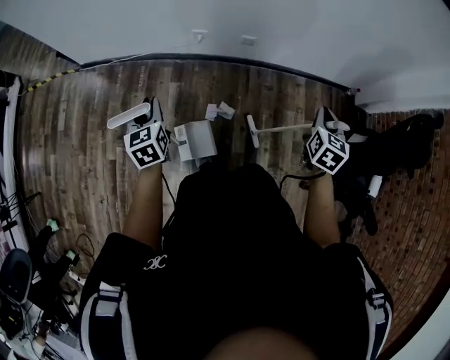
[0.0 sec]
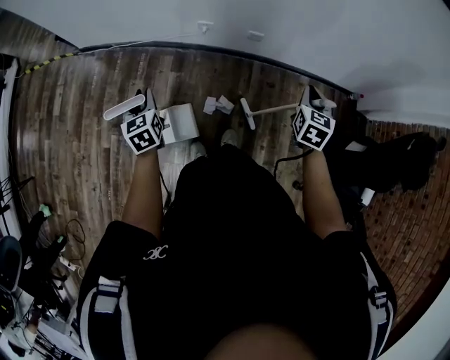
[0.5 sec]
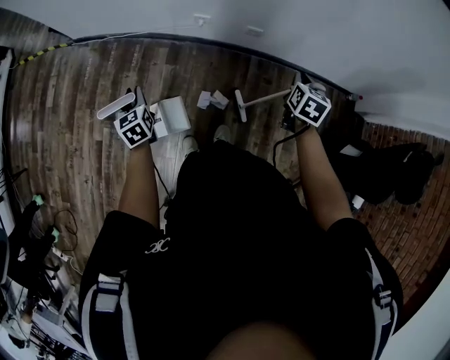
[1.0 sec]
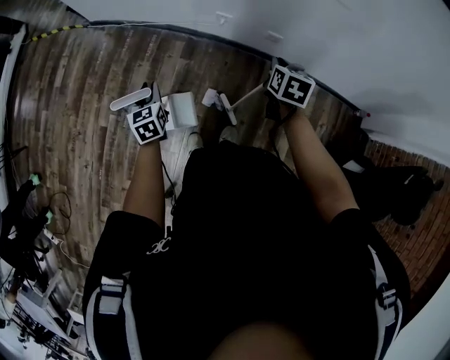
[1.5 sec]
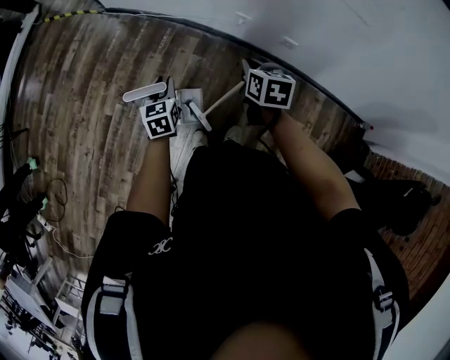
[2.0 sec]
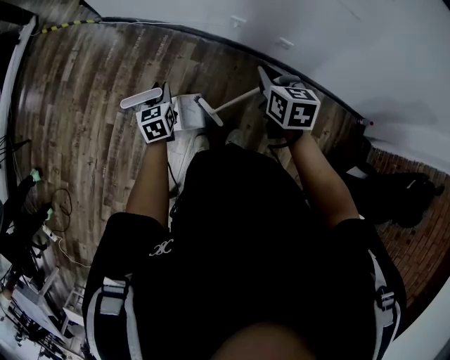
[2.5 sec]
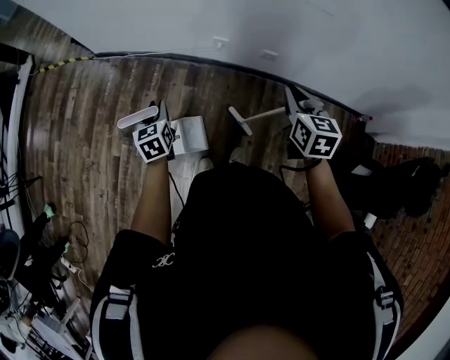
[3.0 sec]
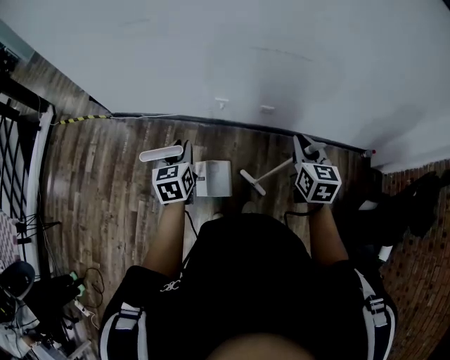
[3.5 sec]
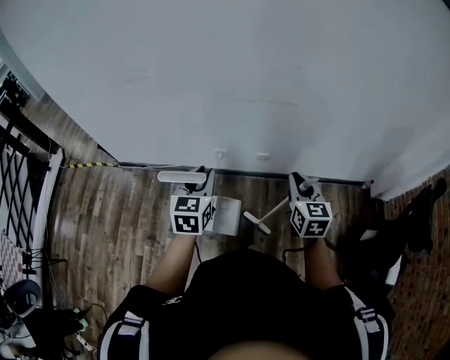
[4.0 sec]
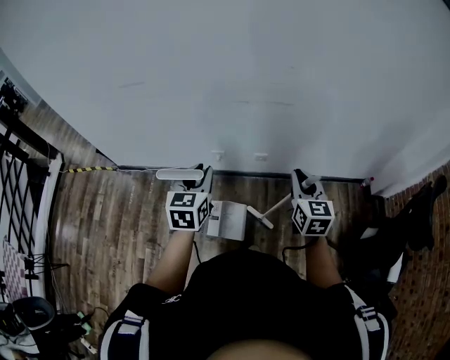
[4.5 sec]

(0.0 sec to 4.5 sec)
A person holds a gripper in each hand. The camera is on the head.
0.0 sec - 2.0 sec: The right gripper moves roughly 40 cm, and swivels roughly 50 degrees. Meanwhile the left gripper moves downward, roughly 10 cm.
2.0 sec - 4.5 sec: The left gripper is displaced upward by approximately 30 cm, and changes its angle by approximately 30 degrees; the right gripper changes place by approximately 35 cm, and swivels roughly 40 degrees.

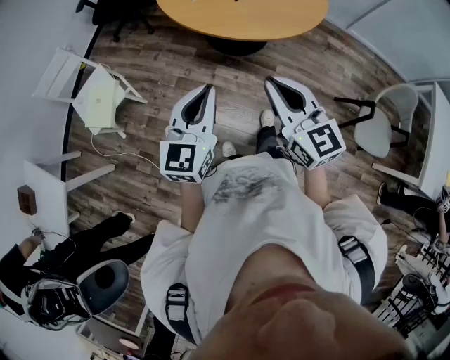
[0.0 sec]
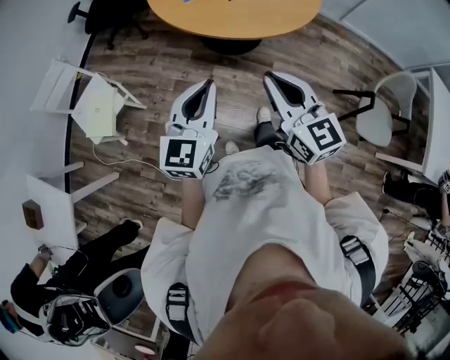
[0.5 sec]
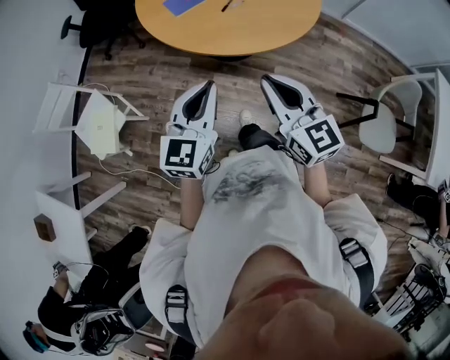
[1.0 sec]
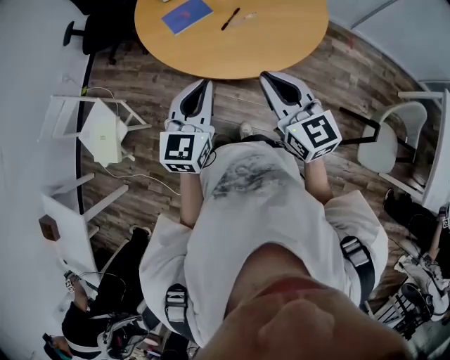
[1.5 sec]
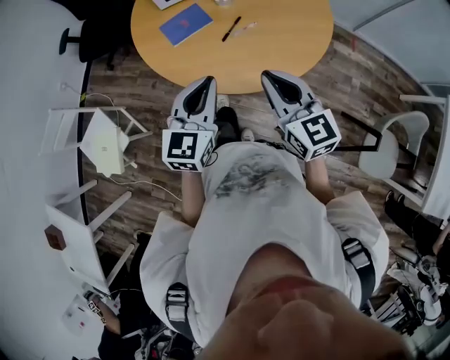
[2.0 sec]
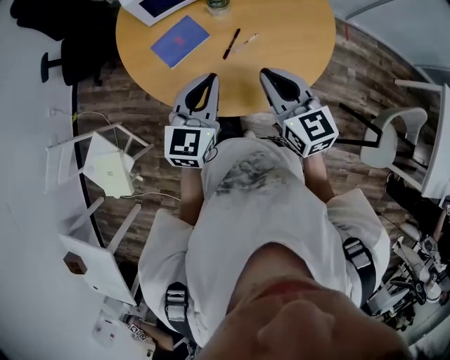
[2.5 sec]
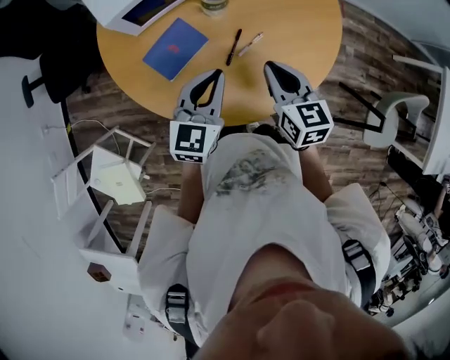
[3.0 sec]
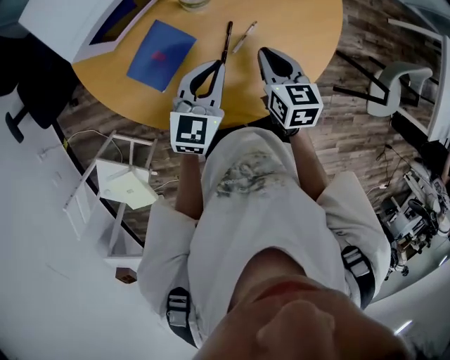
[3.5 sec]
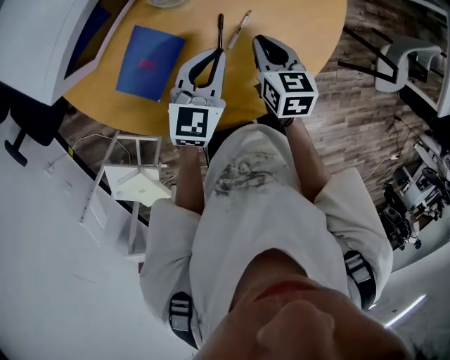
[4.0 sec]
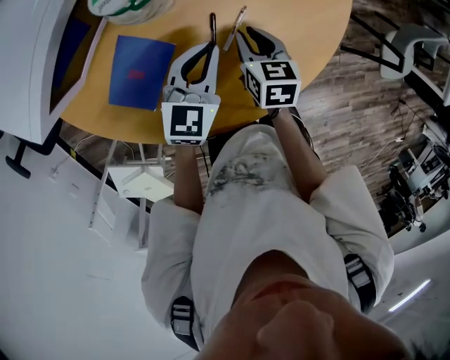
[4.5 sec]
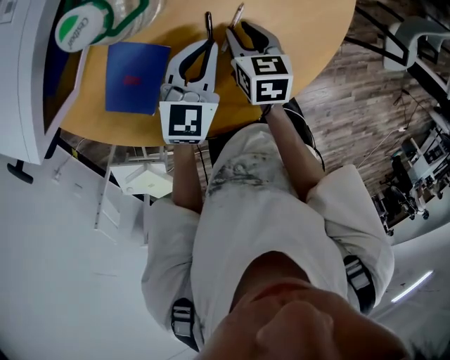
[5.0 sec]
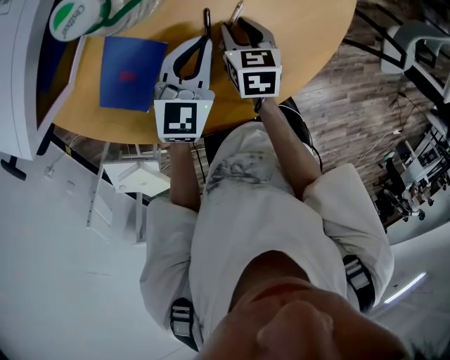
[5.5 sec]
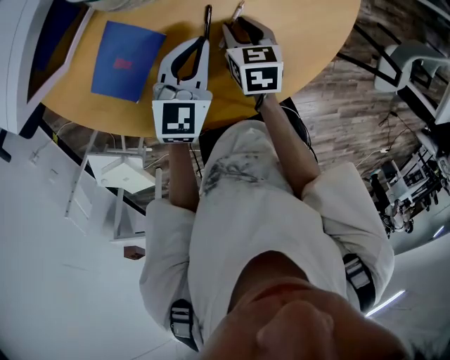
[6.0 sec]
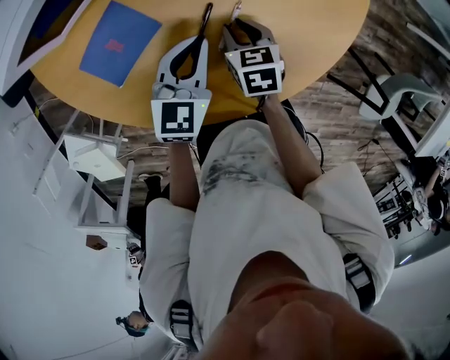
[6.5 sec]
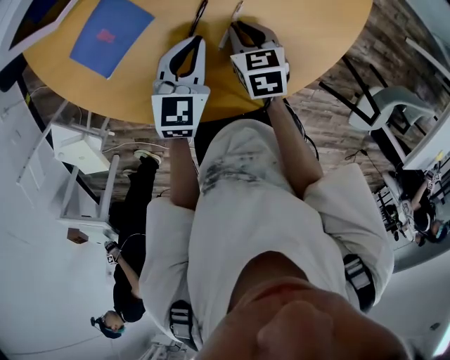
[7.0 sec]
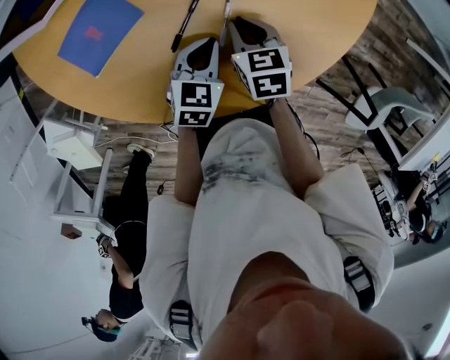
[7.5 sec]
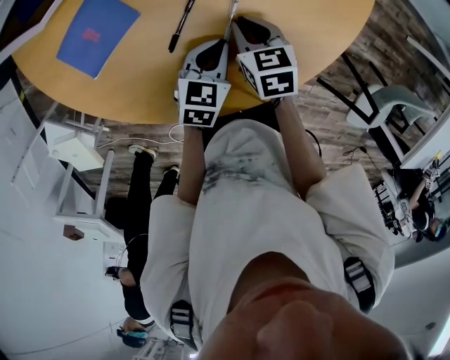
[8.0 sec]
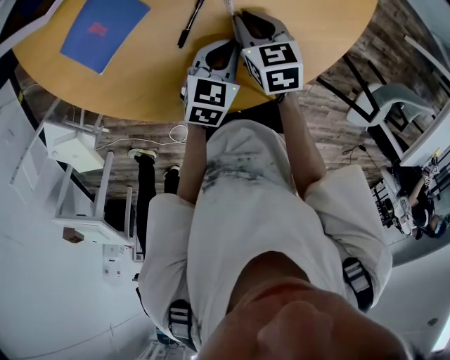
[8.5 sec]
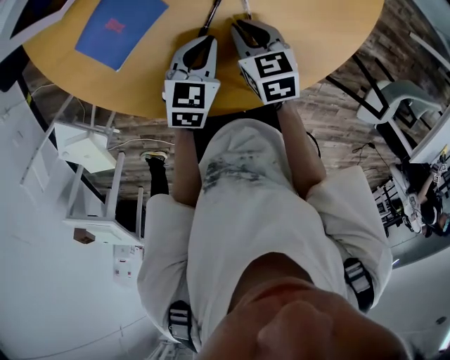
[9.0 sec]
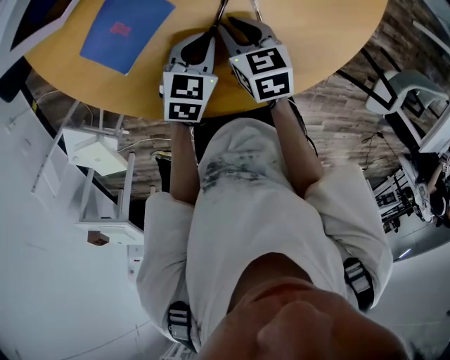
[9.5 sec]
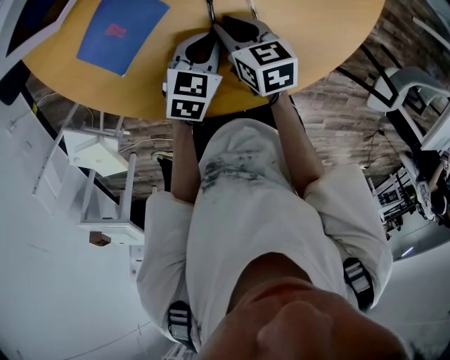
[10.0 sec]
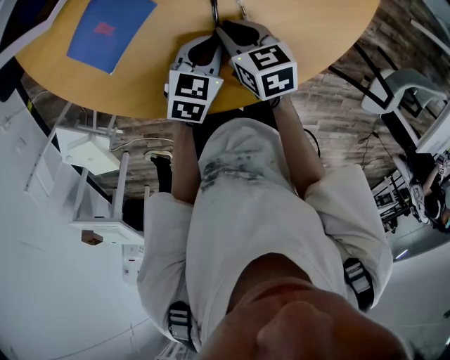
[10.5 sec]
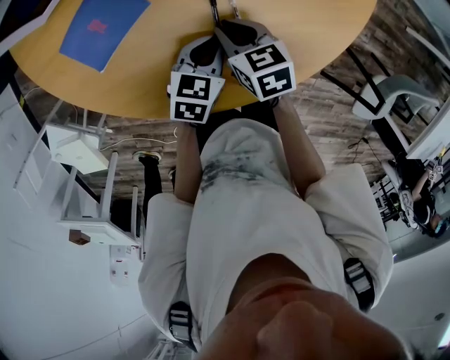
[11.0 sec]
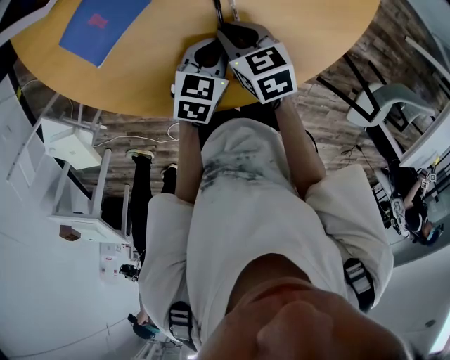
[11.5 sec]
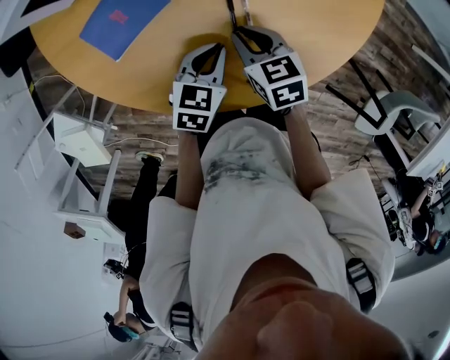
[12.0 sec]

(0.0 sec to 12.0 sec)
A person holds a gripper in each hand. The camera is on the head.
0.0 sec - 2.0 sec: The grippers both shift forward by roughly 35 cm.
2.0 sec - 4.0 sec: The left gripper changes place by roughly 40 cm, and changes its angle by about 40 degrees. The right gripper moves downward, about 30 cm, and angles its fingers downward, by roughly 30 degrees.
4.0 sec - 6.0 sec: The left gripper goes roughly 5 cm downward; the right gripper goes some 10 cm downward, and opens its fingers.
6.0 sec - 8.0 sec: The left gripper moves to the right, downward and backward, roughly 15 cm, and changes its angle by some 20 degrees, while the right gripper swivels some 30 degrees, and closes.
8.0 sec - 10.0 sec: Both grippers move to the left, about 10 cm.
10.0 sec - 12.0 sec: The right gripper moves approximately 5 cm.

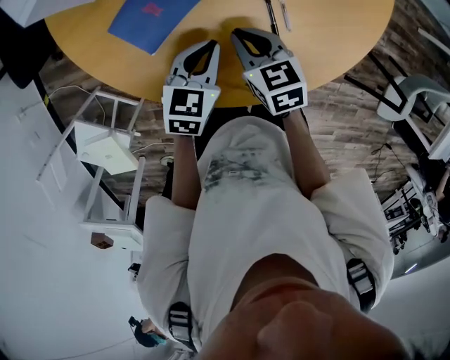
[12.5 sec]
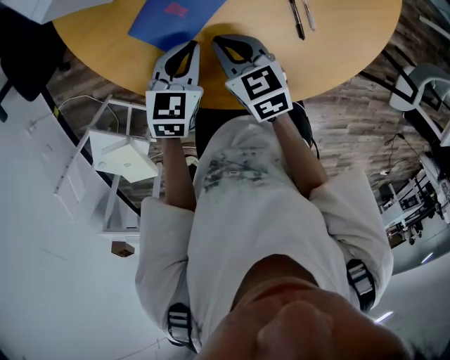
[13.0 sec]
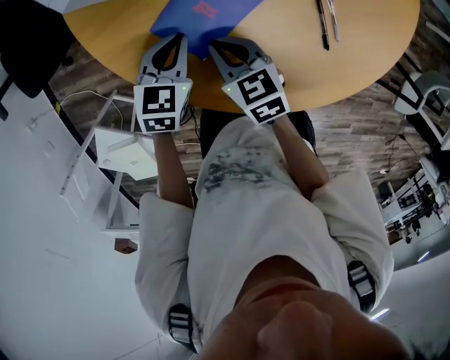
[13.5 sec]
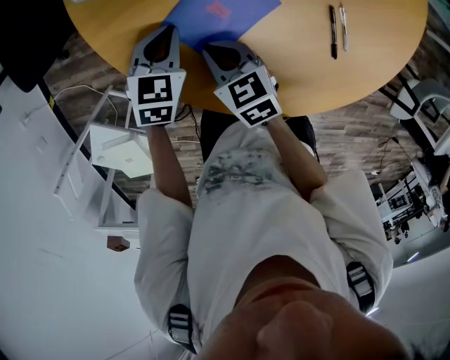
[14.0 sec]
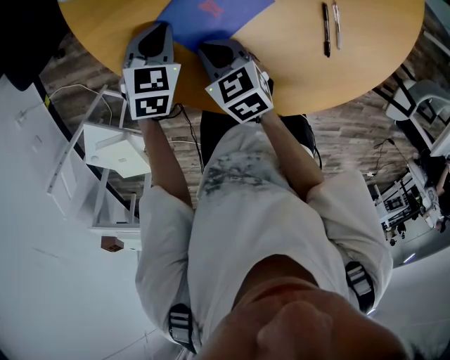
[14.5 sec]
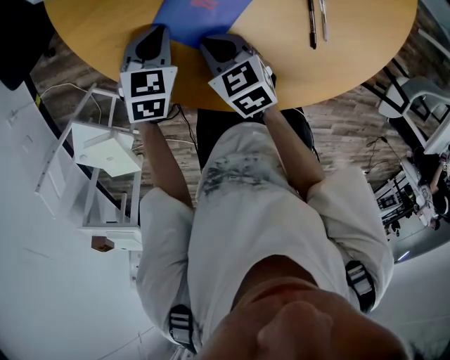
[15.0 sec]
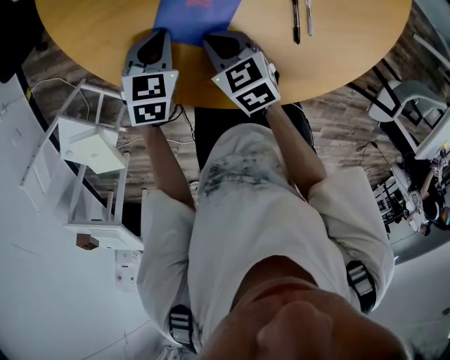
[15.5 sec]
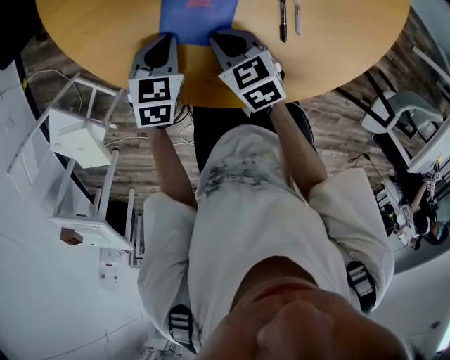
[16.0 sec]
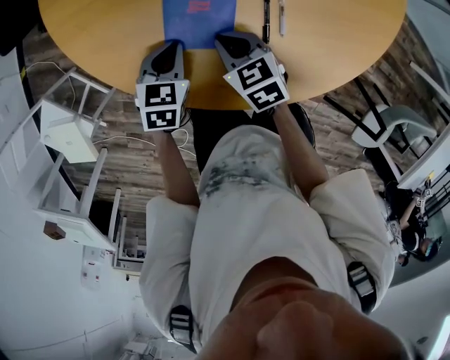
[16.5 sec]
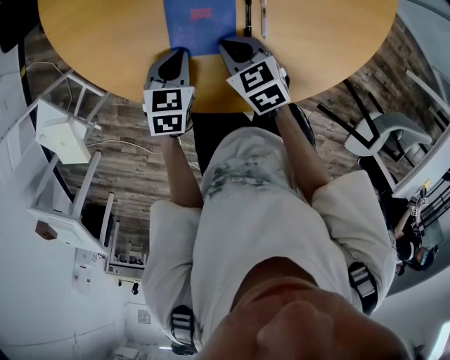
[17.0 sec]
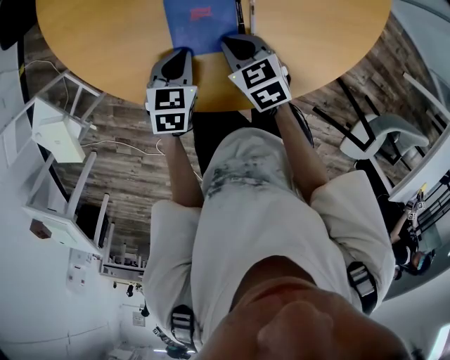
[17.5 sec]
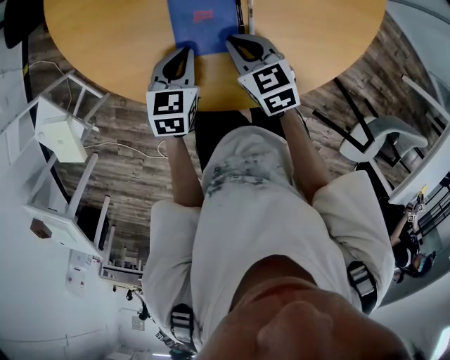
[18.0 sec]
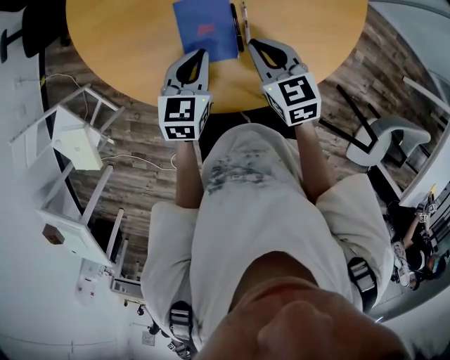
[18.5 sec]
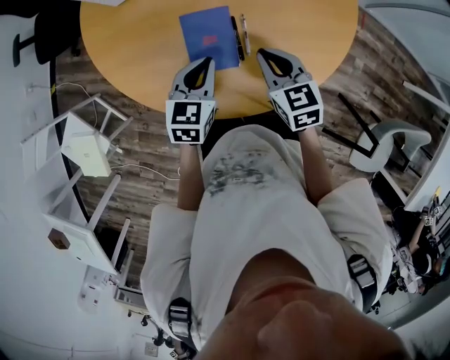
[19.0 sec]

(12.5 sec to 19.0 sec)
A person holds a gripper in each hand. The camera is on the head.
12.5 sec - 14.5 sec: The right gripper moves to the left, approximately 20 cm. The left gripper moves to the left and forward, approximately 25 cm.
14.5 sec - 17.0 sec: The right gripper travels to the right and backward by roughly 25 cm. Meanwhile the left gripper is displaced backward and to the right by some 25 cm, and changes its angle by roughly 20 degrees.
17.0 sec - 19.0 sec: The grippers both shift upward and to the right by some 20 cm. The right gripper turns by about 20 degrees.

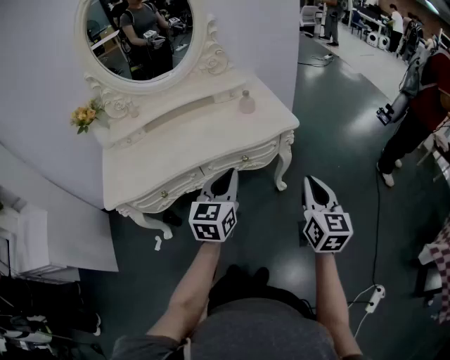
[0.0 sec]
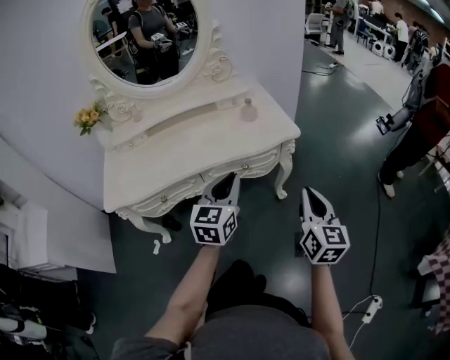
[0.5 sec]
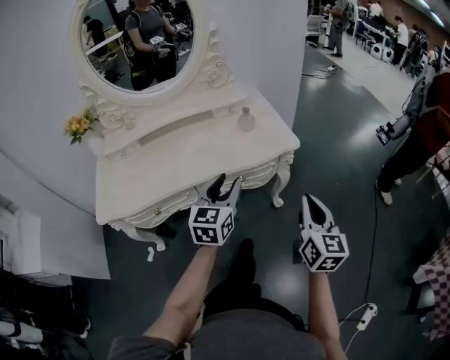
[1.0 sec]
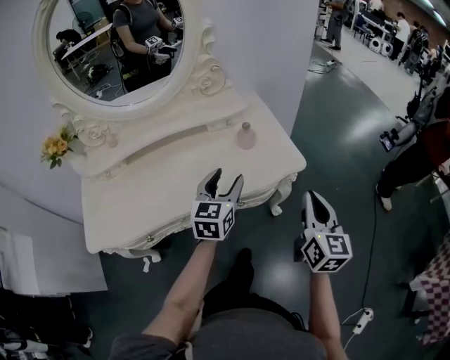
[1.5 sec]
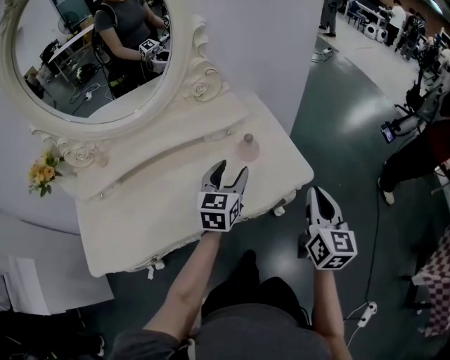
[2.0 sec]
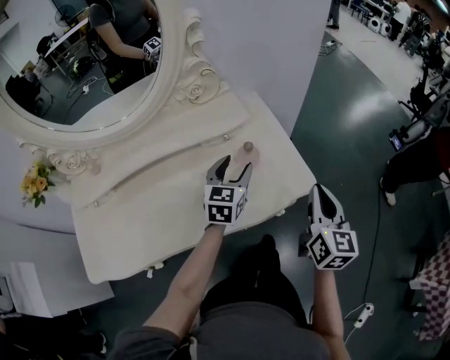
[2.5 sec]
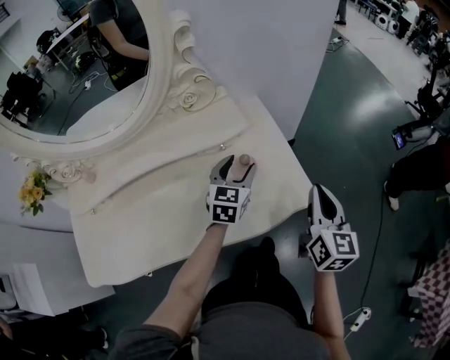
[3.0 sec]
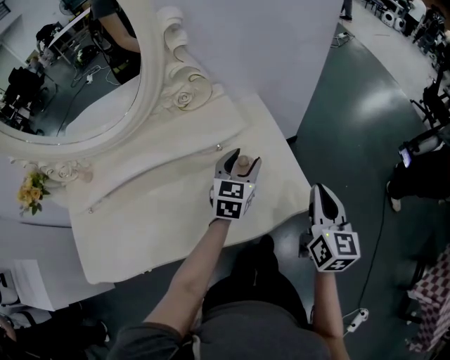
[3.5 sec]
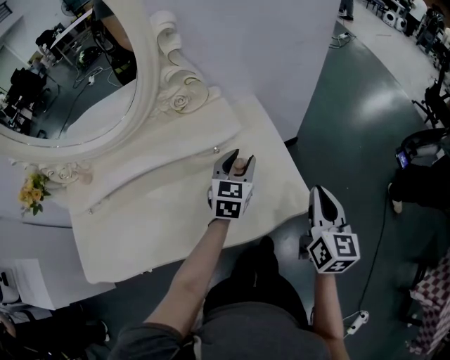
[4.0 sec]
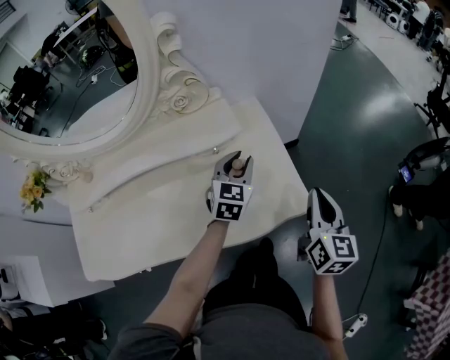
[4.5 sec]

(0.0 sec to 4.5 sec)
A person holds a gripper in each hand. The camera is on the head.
0.0 sec - 2.0 sec: Both grippers move forward, about 30 cm. The left gripper opens its fingers.
2.0 sec - 4.5 sec: Both grippers move forward, roughly 15 cm. The left gripper closes up.
